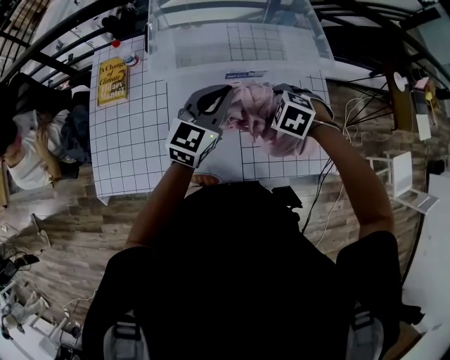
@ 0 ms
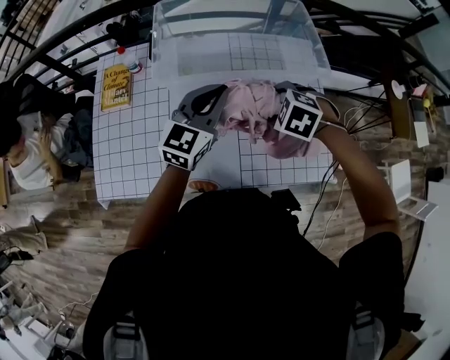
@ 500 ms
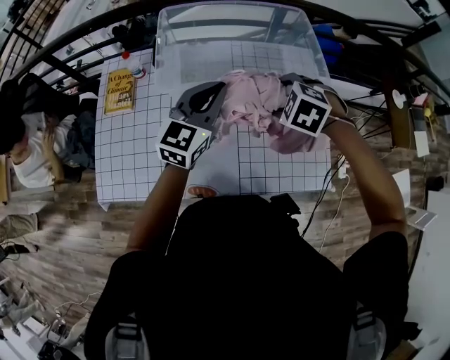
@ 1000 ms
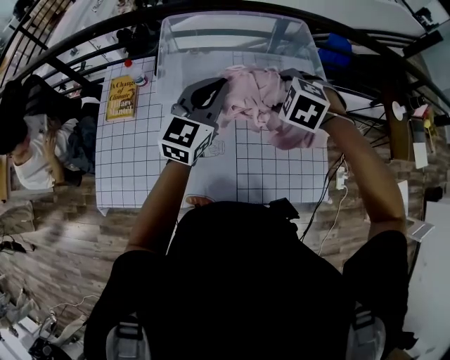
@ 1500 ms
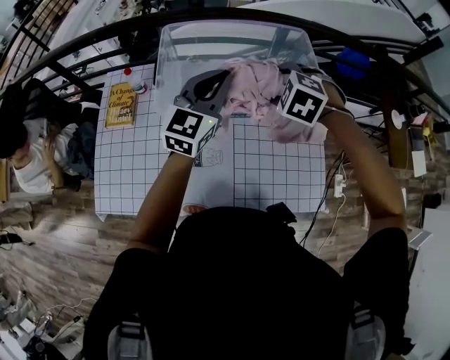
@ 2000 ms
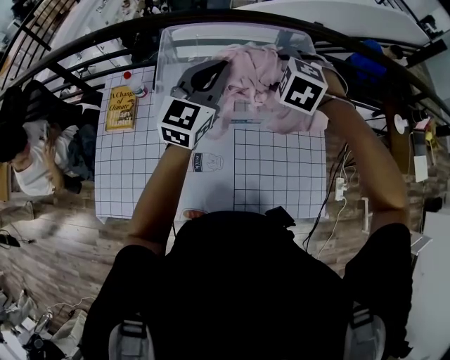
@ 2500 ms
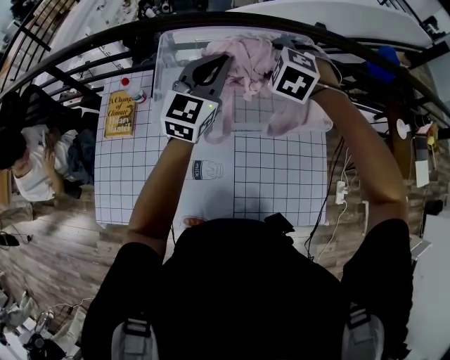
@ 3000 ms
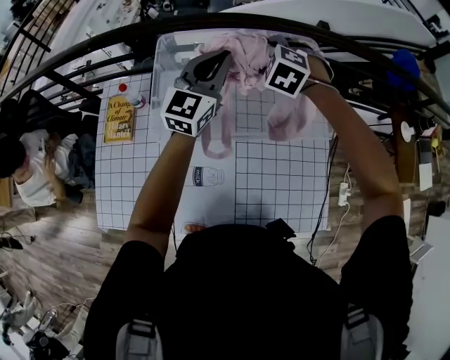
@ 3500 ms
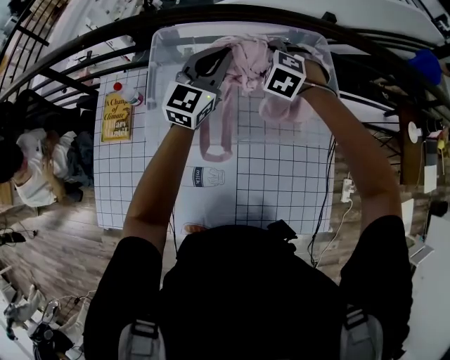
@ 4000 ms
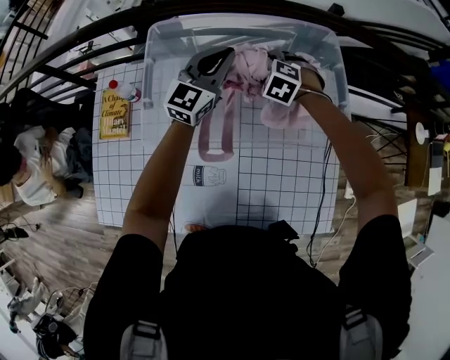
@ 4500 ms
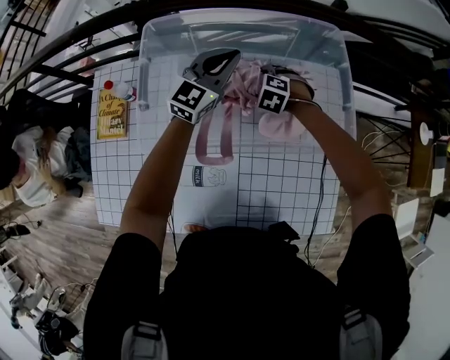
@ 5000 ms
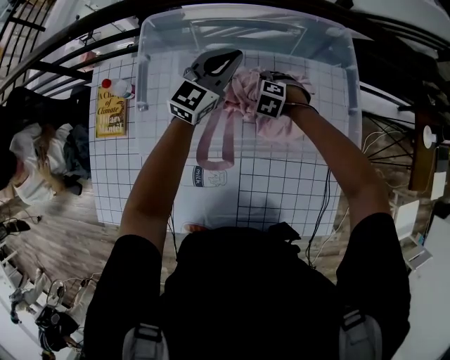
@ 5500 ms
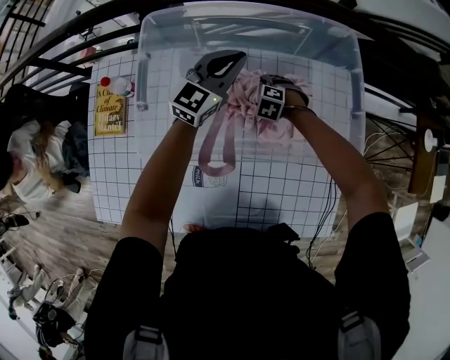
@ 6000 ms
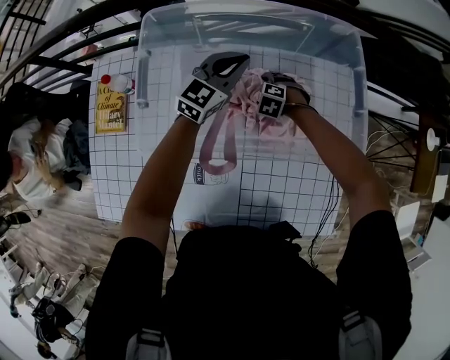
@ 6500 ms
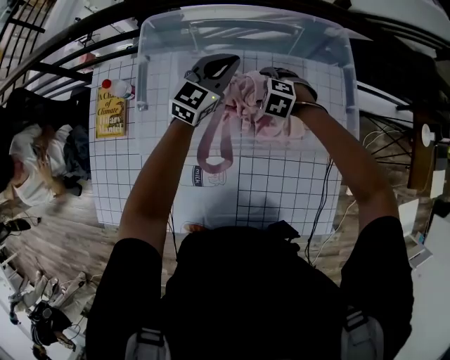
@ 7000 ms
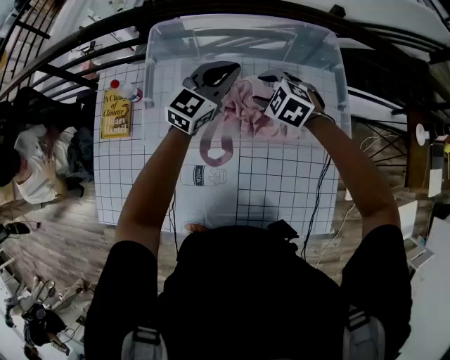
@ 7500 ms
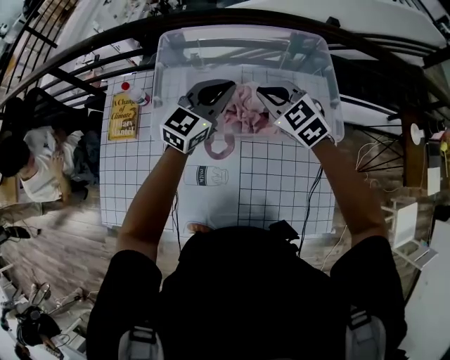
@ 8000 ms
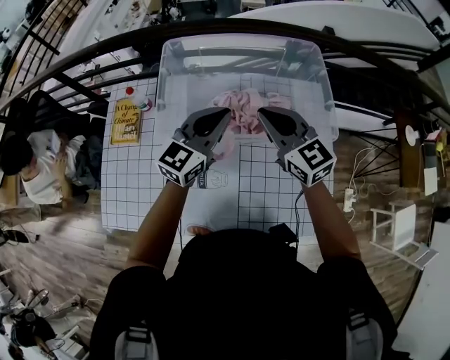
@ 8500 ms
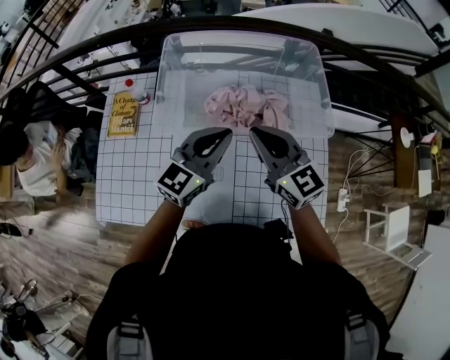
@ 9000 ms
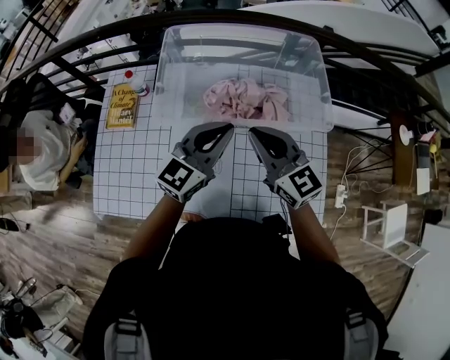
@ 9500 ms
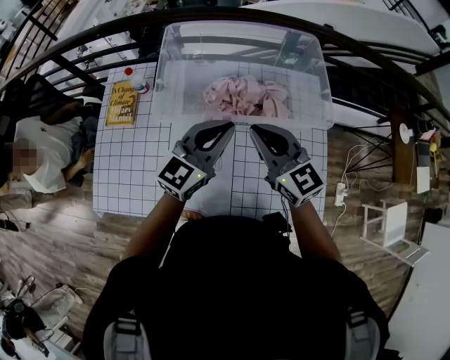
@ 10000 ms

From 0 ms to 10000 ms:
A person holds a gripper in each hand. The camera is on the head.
From 0 ms to 2000 ms: Both grippers travel together upward, some 15 cm.
From 2000 ms to 4000 ms: The right gripper is displaced forward and downward by roughly 25 cm. Meanwhile the left gripper is displaced forward by approximately 20 cm.
From 4000 ms to 6000 ms: The right gripper goes approximately 30 cm downward. The left gripper moves downward, roughly 10 cm.
From 6000 ms to 8000 ms: The left gripper moves some 15 cm; the right gripper is displaced upward by about 30 cm, tilts its fingers roughly 40 degrees upward, and closes.
From 8000 ms to 10000 ms: The right gripper moves backward and upward, some 20 cm, and swivels approximately 30 degrees. Meanwhile the left gripper heads backward, covering about 15 cm.

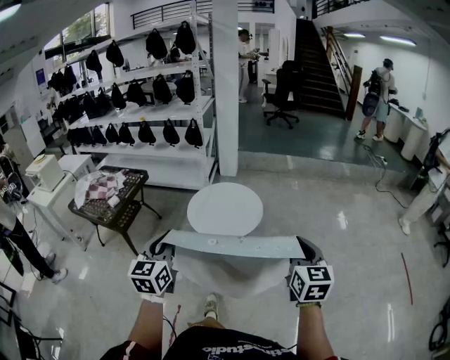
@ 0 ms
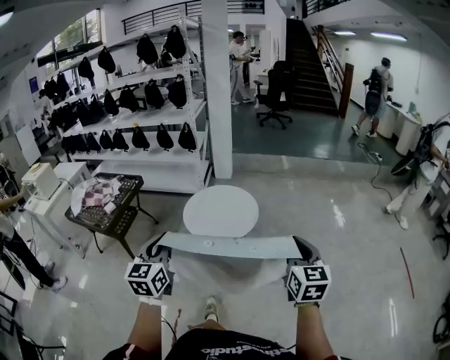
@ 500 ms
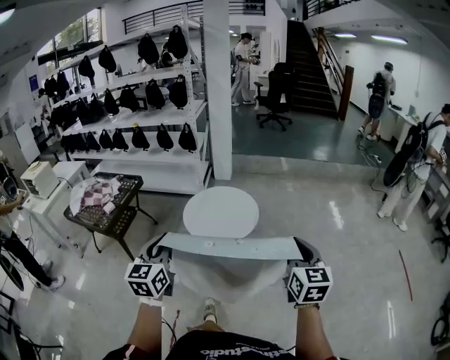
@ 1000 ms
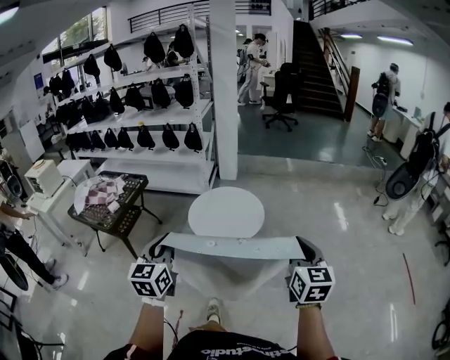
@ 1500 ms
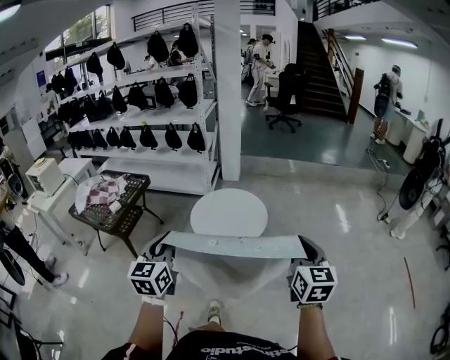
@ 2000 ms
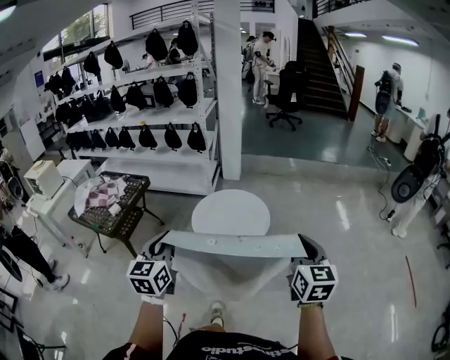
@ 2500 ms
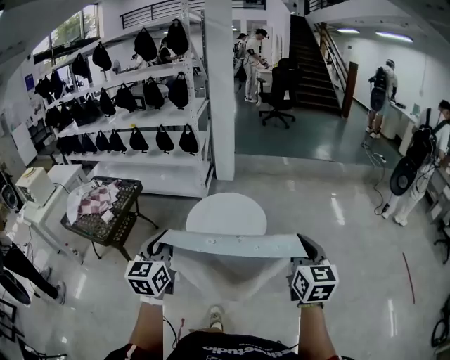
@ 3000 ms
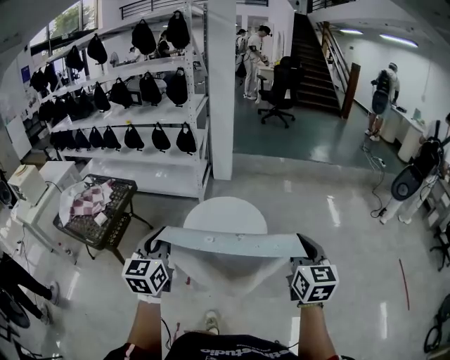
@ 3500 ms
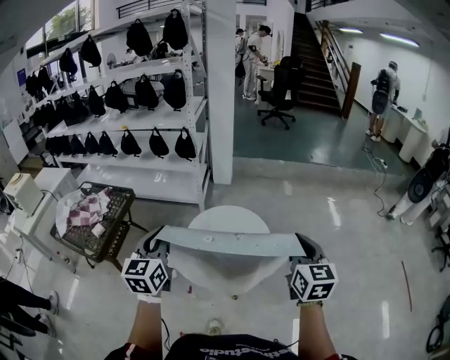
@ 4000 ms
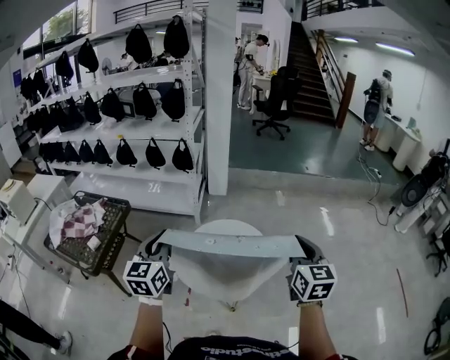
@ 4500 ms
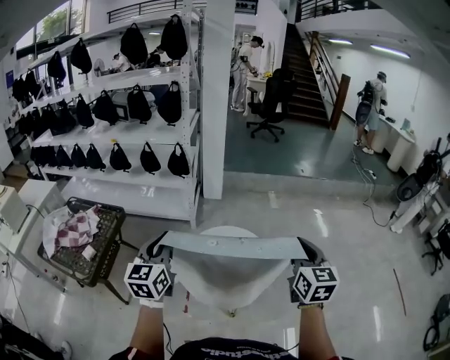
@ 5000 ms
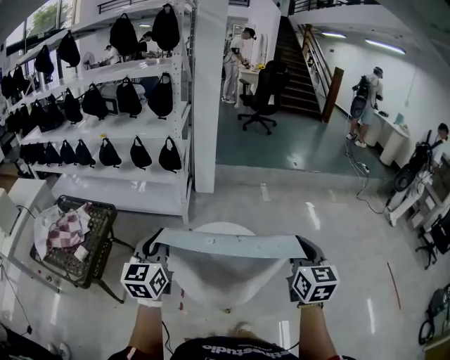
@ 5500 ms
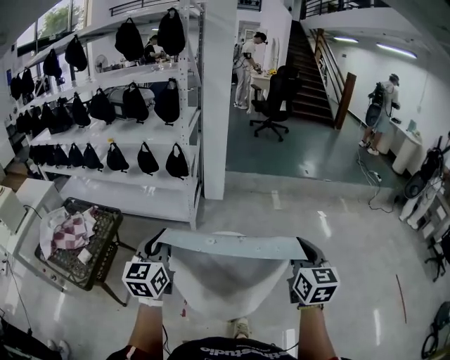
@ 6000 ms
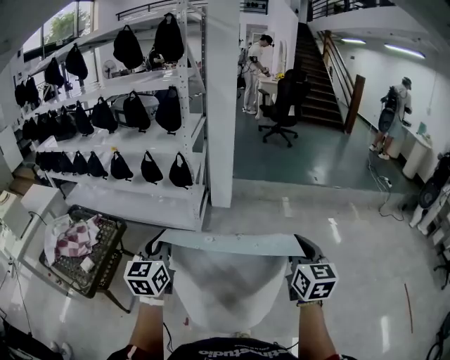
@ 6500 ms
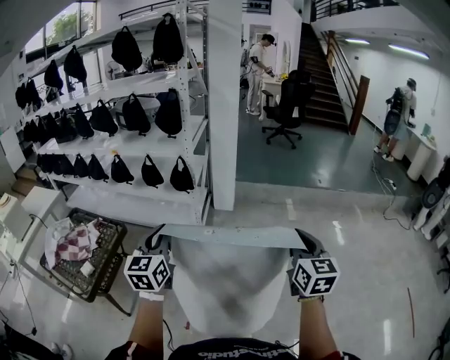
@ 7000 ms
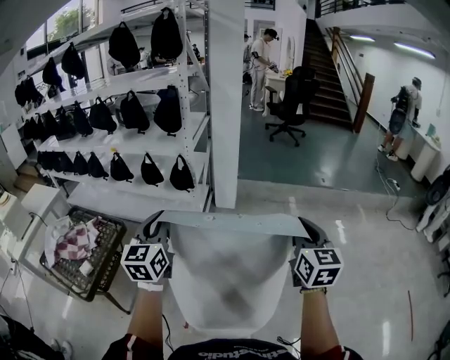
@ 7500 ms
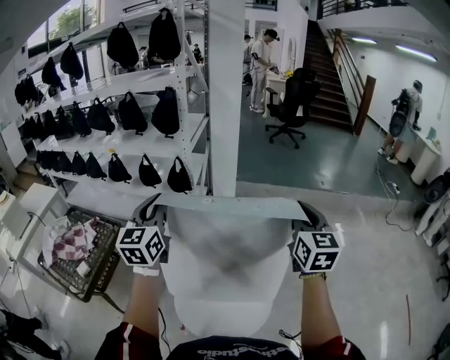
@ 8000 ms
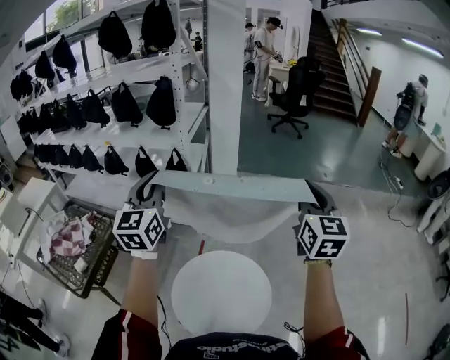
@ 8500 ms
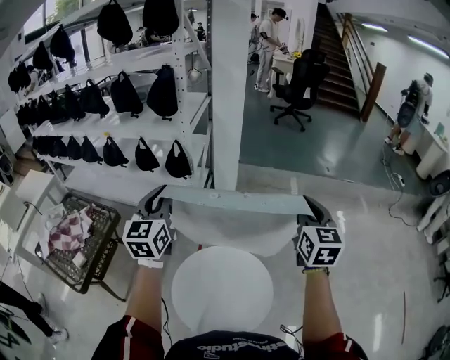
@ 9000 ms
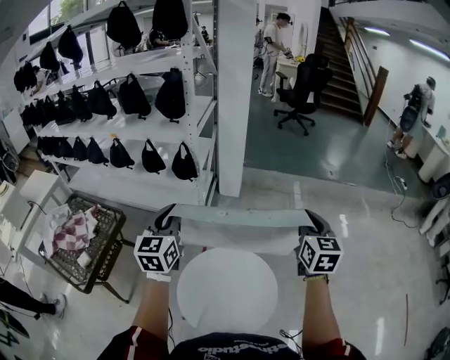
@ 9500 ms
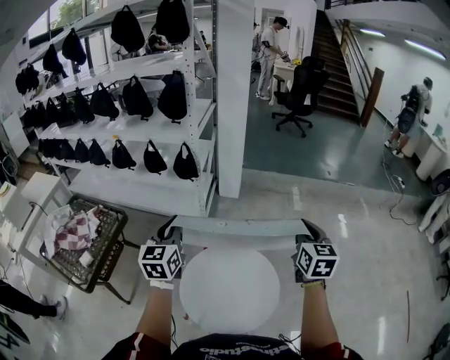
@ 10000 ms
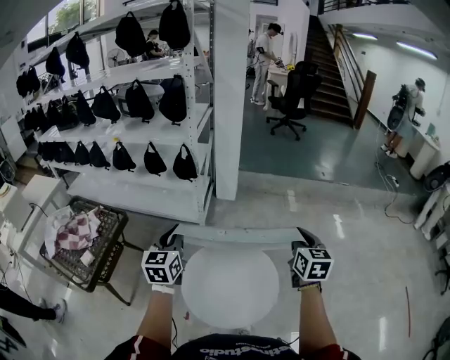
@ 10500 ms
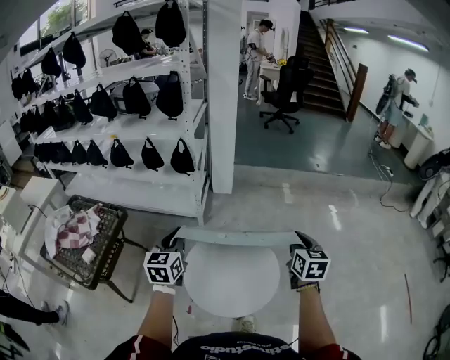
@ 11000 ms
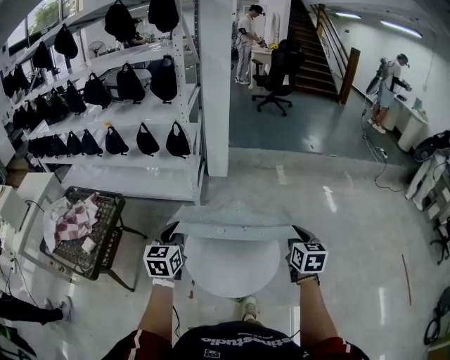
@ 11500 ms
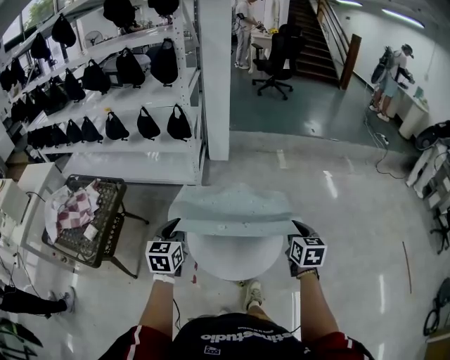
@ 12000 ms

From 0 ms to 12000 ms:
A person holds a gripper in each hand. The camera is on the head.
From 0 ms to 2000 ms: The right gripper shifts by some 5 cm.
From 2000 ms to 4000 ms: The grippers both shift forward by about 25 cm.
From 4000 ms to 6000 ms: Both grippers travel together forward, about 15 cm.
From 6000 ms to 8000 ms: The left gripper travels forward and upward by roughly 25 cm. Meanwhile the right gripper travels forward by about 25 cm.
From 8000 ms to 10000 ms: Both grippers move downward, about 10 cm.
From 10000 ms to 12000 ms: The grippers both shift backward and downward by some 25 cm.

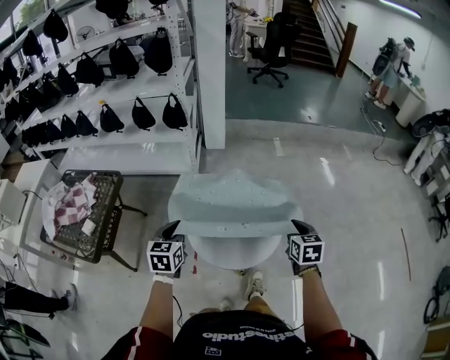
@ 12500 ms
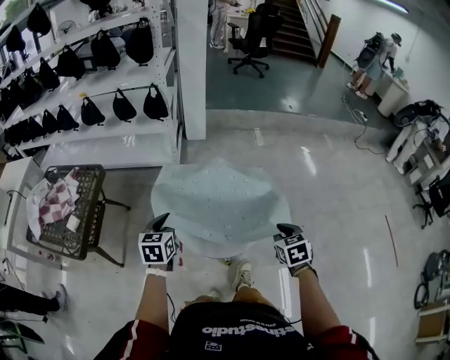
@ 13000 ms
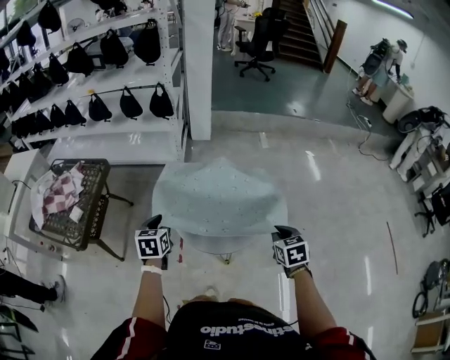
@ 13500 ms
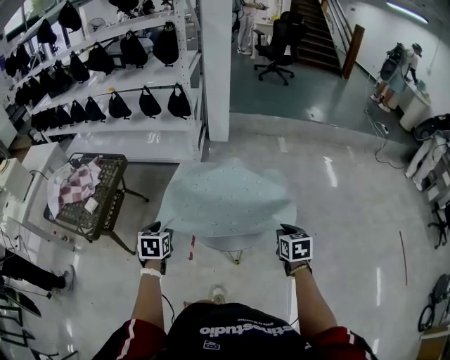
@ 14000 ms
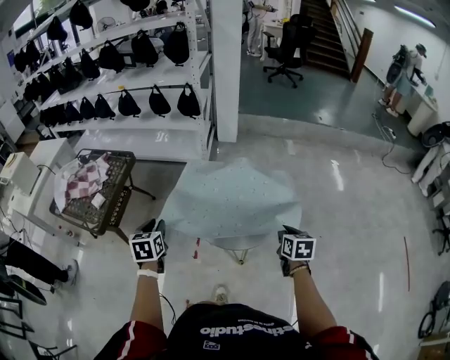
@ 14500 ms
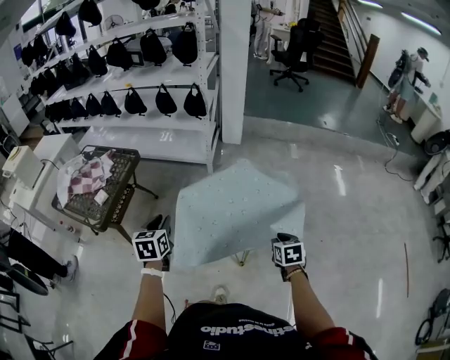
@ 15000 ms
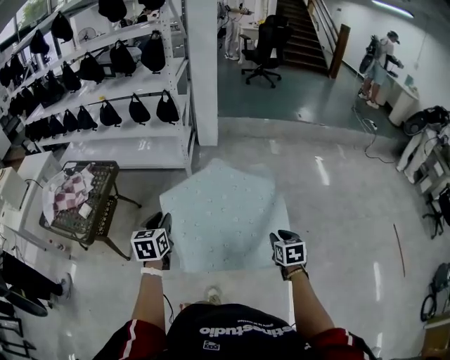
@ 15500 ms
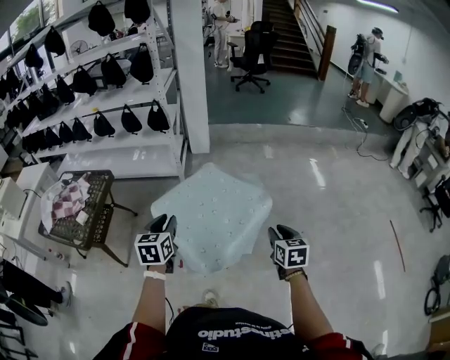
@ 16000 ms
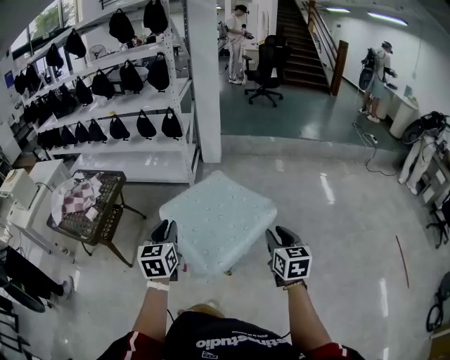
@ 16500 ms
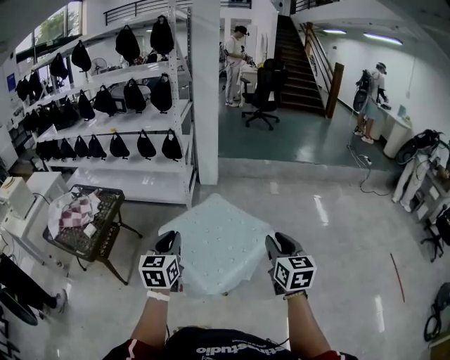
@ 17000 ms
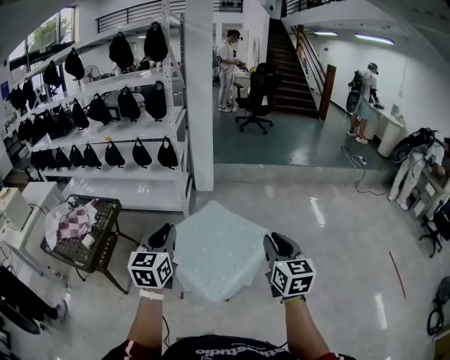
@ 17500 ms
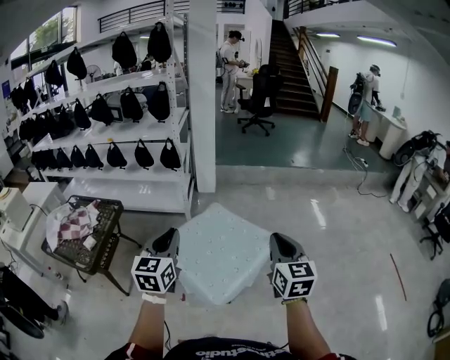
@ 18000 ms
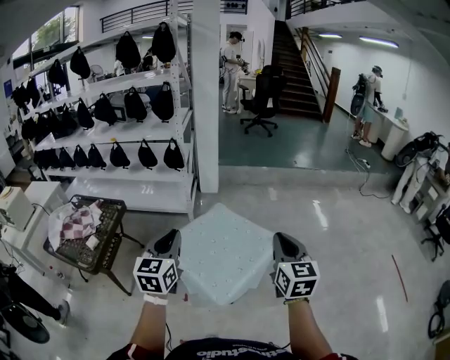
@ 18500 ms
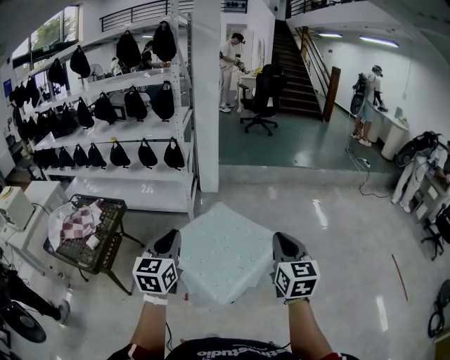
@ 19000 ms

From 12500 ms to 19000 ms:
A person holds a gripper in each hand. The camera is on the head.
From 12500 ms to 14500 ms: The right gripper goes roughly 10 cm backward. The left gripper travels backward and to the left by some 15 cm, and opens.
From 14500 ms to 17000 ms: The right gripper heads upward and backward, covering some 25 cm, changes its angle by approximately 30 degrees, and opens up. Meanwhile the left gripper travels to the right and upward by approximately 25 cm, and turns by roughly 30 degrees.
From 17000 ms to 19000 ms: Both grippers travel together upward, about 5 cm. The right gripper closes its fingers.
